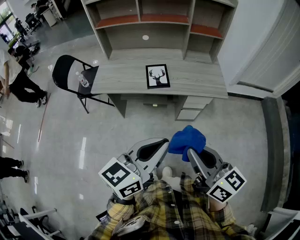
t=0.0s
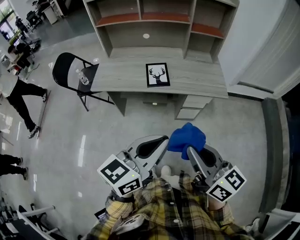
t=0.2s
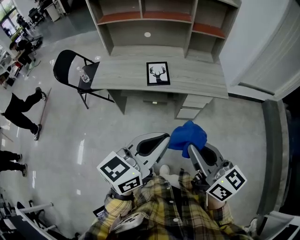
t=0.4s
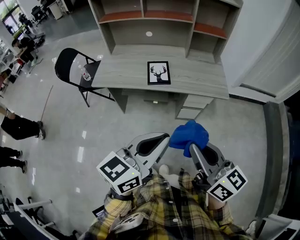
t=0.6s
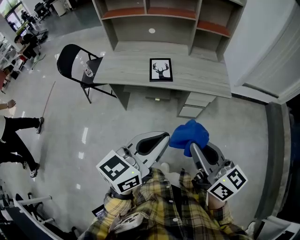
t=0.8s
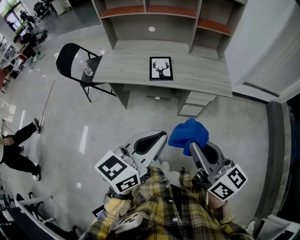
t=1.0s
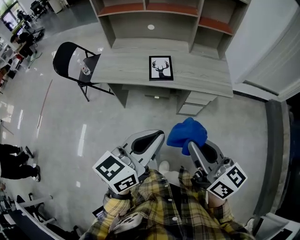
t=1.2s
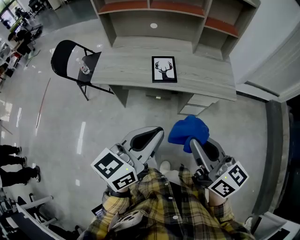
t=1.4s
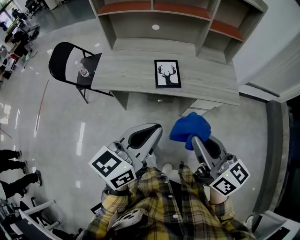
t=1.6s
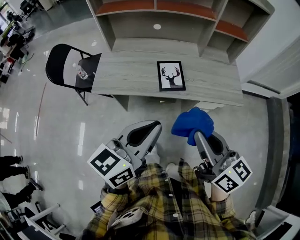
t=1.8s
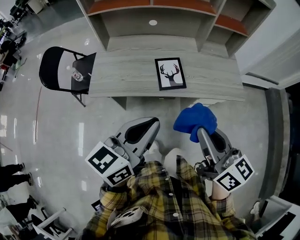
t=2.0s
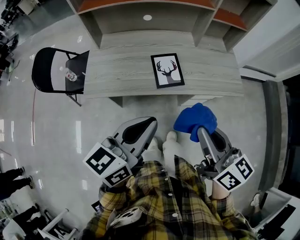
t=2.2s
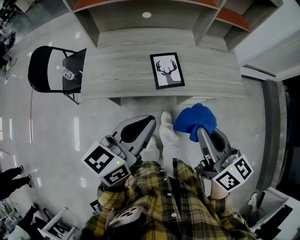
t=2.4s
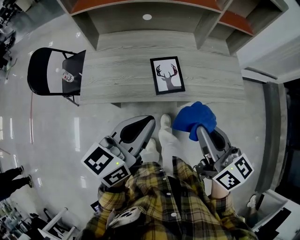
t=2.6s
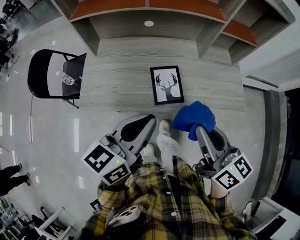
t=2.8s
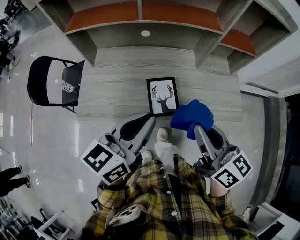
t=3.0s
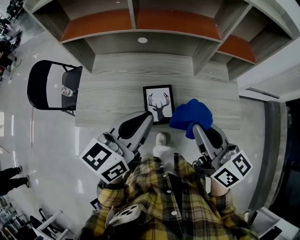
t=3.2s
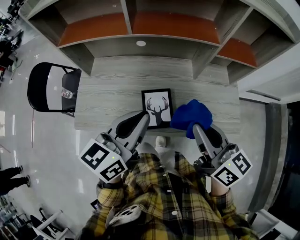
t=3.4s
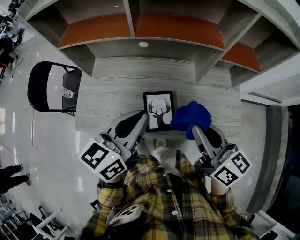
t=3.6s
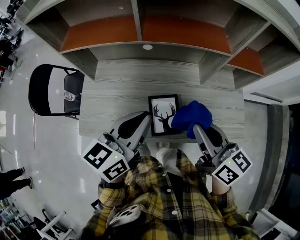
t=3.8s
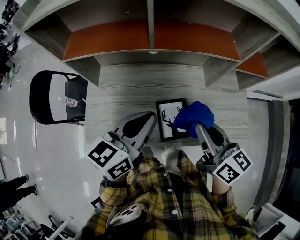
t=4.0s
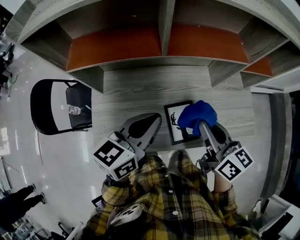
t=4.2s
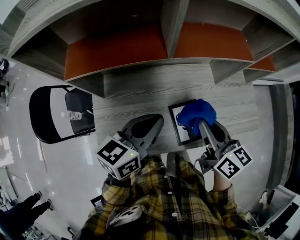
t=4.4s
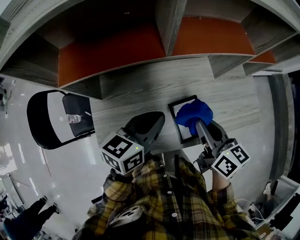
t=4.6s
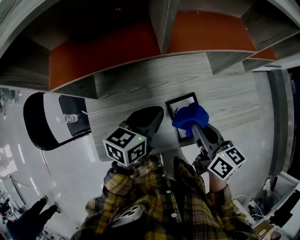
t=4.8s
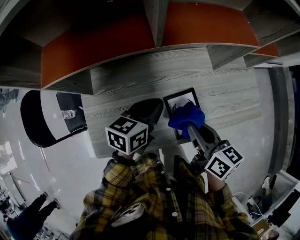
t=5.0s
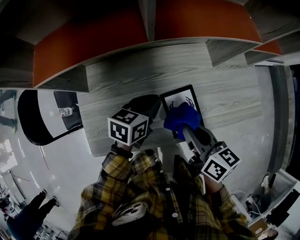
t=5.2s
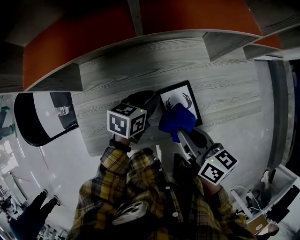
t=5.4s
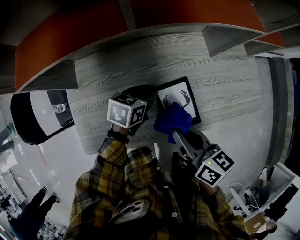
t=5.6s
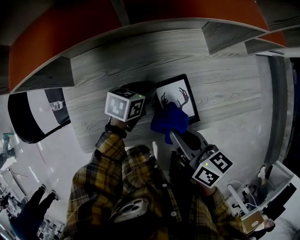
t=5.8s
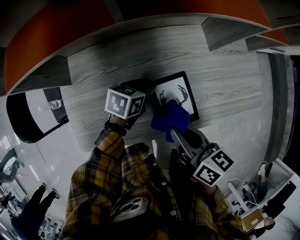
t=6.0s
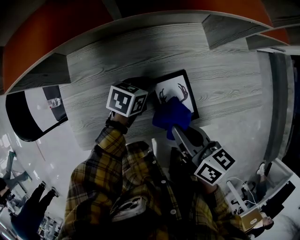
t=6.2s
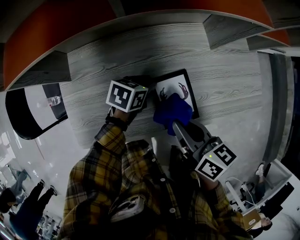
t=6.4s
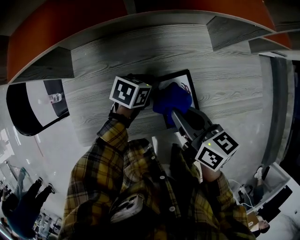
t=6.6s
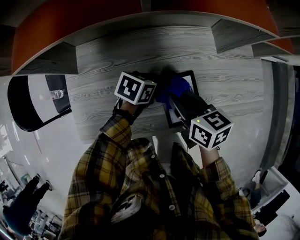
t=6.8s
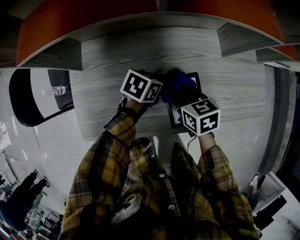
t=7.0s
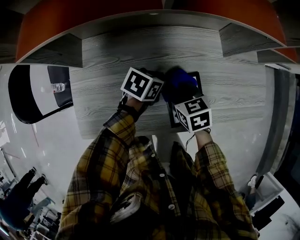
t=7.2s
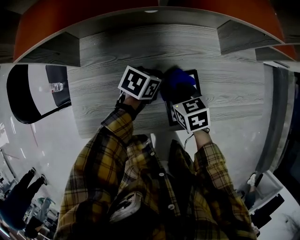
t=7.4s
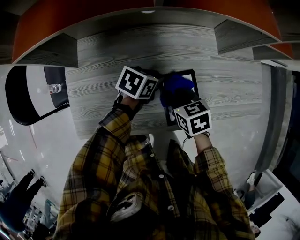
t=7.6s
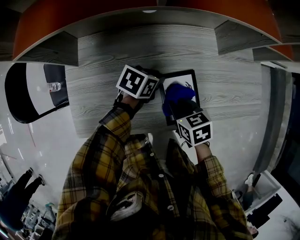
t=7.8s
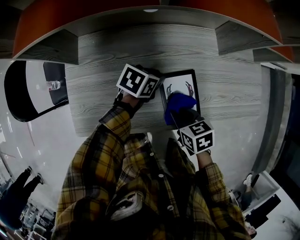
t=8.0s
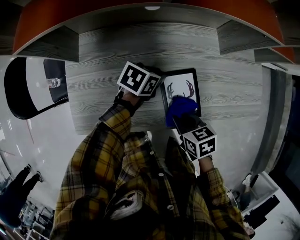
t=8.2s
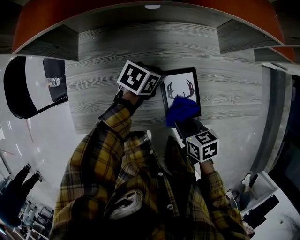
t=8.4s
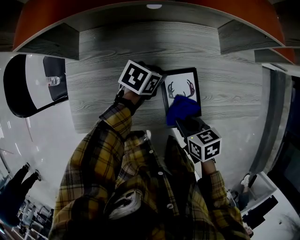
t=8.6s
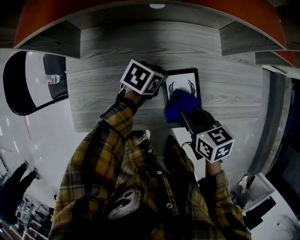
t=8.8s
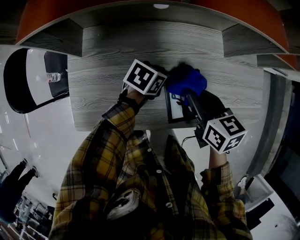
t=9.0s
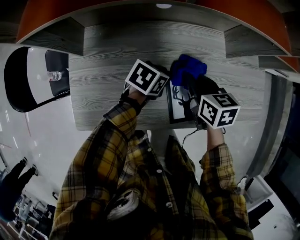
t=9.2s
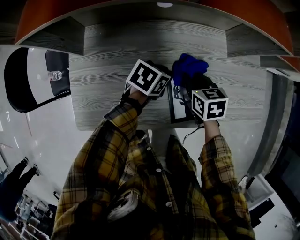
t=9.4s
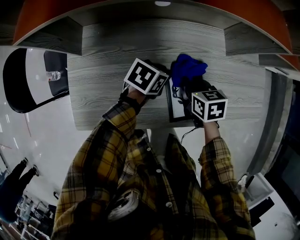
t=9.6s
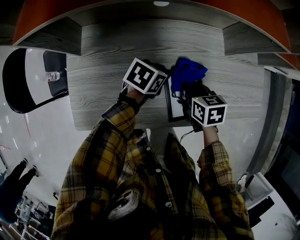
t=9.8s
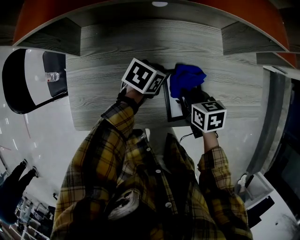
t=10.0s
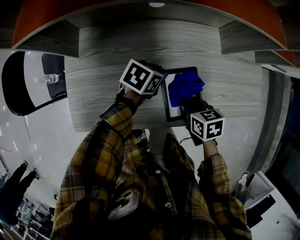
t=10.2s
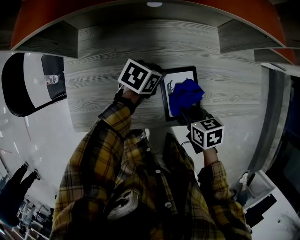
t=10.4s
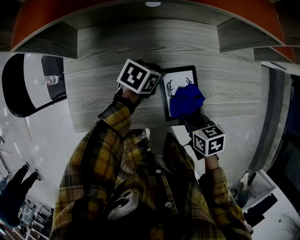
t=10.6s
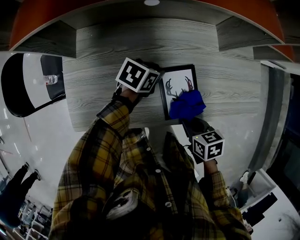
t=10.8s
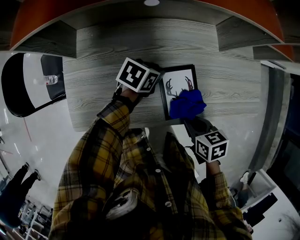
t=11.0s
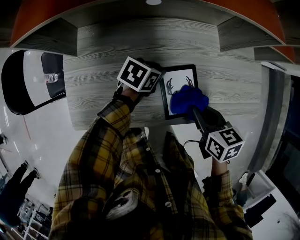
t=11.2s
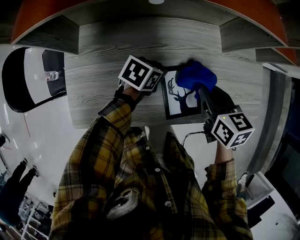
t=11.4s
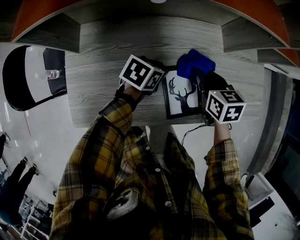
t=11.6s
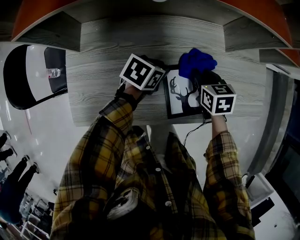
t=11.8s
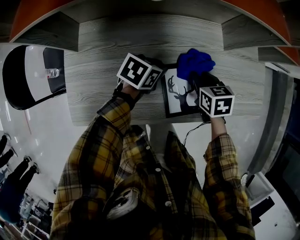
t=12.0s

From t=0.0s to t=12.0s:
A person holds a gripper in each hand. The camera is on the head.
From t=0.0s to t=1.6s: The right gripper travels forward by roughly 15 cm, while the left gripper shifts roughly 15 cm forward and to the left.
From t=1.6s to t=3.0s: Both grippers travel together forward, roughly 25 cm.
From t=3.0s to t=4.4s: The two grippers go roughly 20 cm forward and to the left.
From t=4.4s to t=6.0s: The left gripper travels downward by some 25 cm, changes its angle by roughly 30 degrees, and opens its fingers; the right gripper goes about 10 cm downward and backward.
From t=6.0s to t=7.6s: The right gripper goes some 15 cm downward and forward, and turns by about 40 degrees.
From t=7.6s to t=9.0s: The right gripper is displaced upward by roughly 10 cm.
From t=9.0s to t=10.4s: The right gripper travels downward, backward and to the right by some 15 cm, and swivels approximately 20 degrees.
From t=10.4s to t=12.0s: The right gripper heads forward, covering roughly 15 cm.

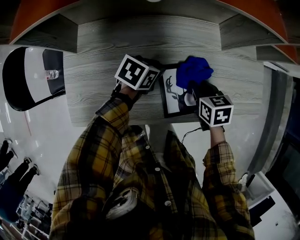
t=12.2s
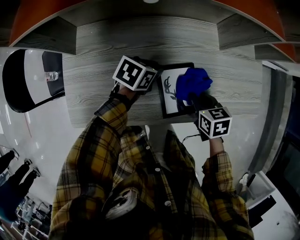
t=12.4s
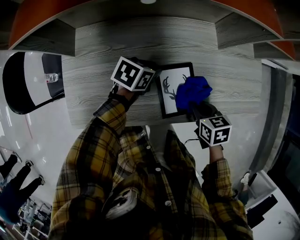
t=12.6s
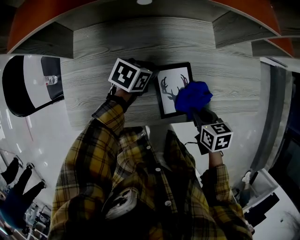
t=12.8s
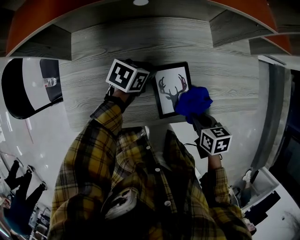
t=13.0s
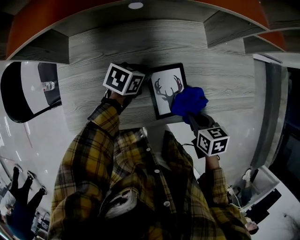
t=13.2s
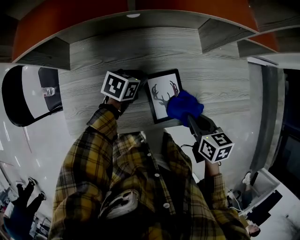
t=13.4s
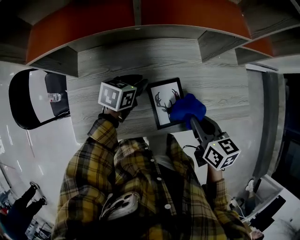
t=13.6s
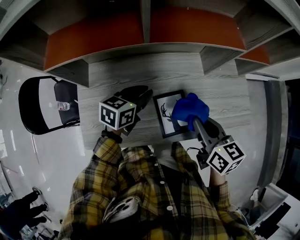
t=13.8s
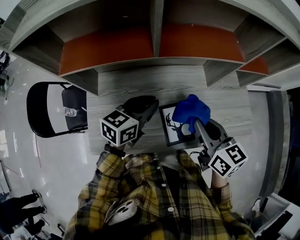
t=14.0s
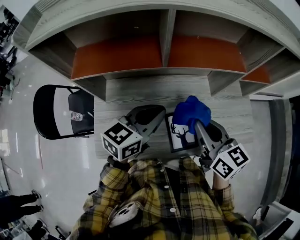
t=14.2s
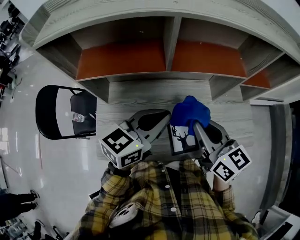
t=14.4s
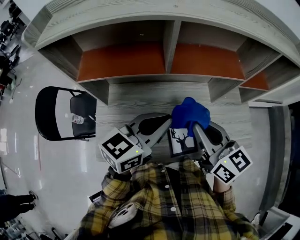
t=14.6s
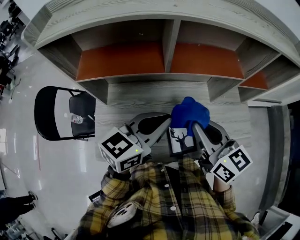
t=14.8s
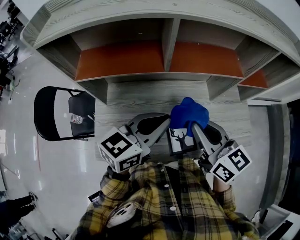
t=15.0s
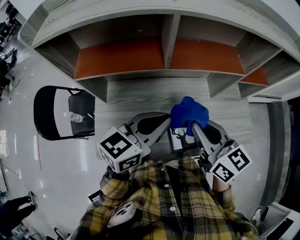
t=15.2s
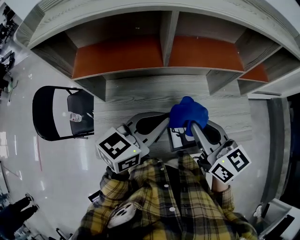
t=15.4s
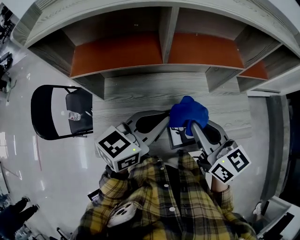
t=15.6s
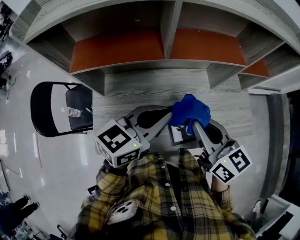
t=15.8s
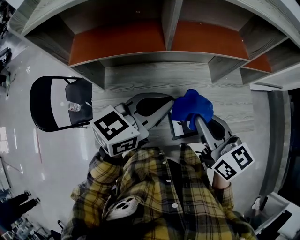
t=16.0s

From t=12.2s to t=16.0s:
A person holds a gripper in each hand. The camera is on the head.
From t=12.2s to t=13.4s: The right gripper is displaced backward, upward and to the right by roughly 15 cm.
From t=13.4s to t=14.8s: The right gripper shifts some 25 cm upward and to the left, and tilts its fingers roughly 30 degrees upward, while the left gripper goes approximately 30 cm upward, tilts its fingers approximately 40 degrees upward, and closes.
From t=14.8s to t=16.0s: The grippers move only a little.

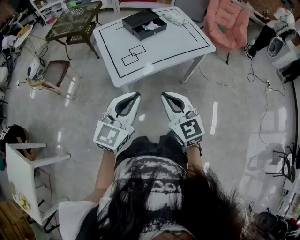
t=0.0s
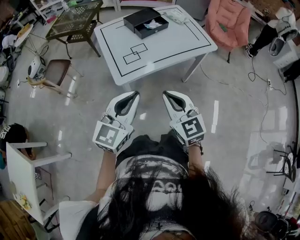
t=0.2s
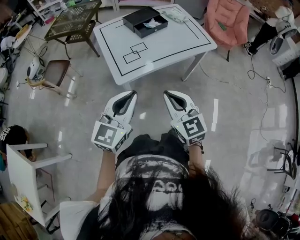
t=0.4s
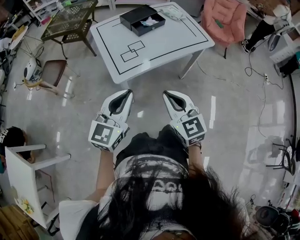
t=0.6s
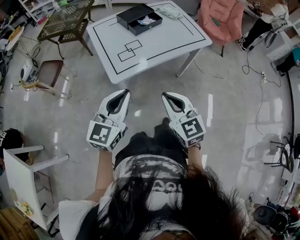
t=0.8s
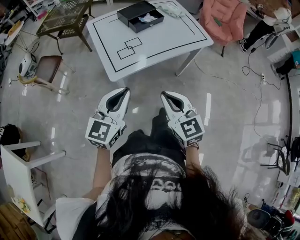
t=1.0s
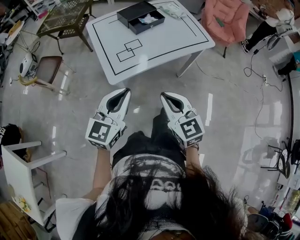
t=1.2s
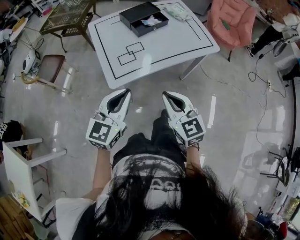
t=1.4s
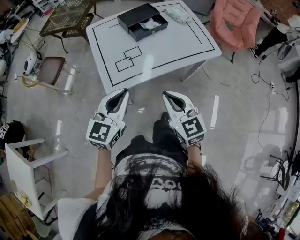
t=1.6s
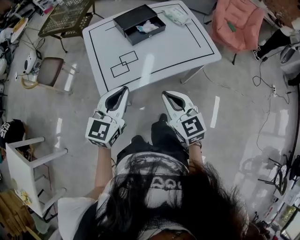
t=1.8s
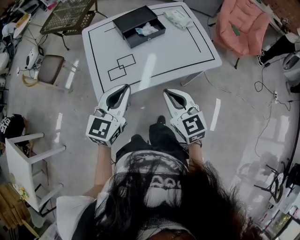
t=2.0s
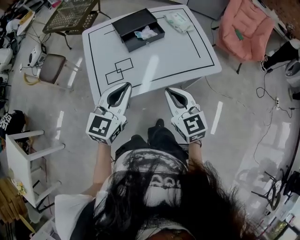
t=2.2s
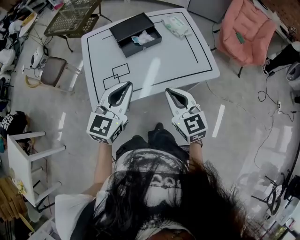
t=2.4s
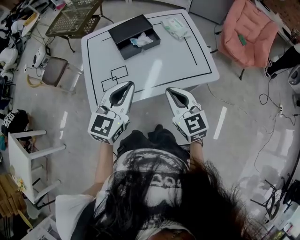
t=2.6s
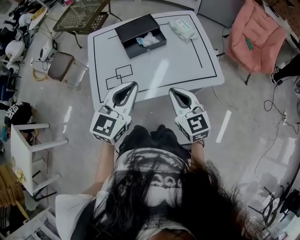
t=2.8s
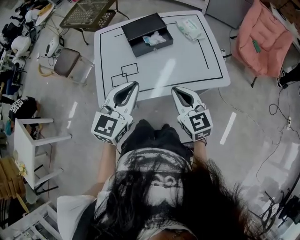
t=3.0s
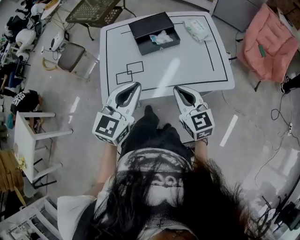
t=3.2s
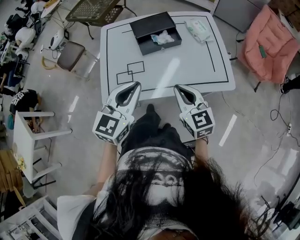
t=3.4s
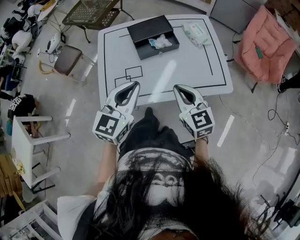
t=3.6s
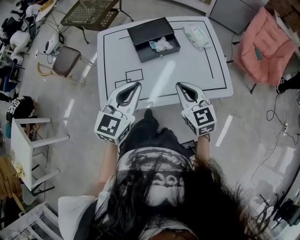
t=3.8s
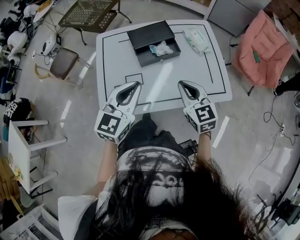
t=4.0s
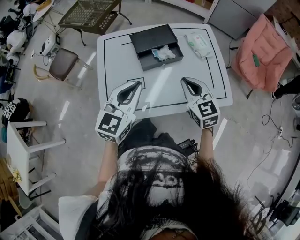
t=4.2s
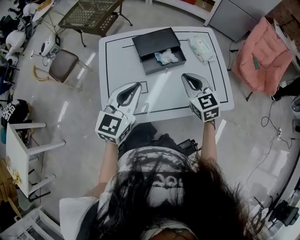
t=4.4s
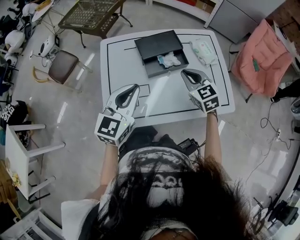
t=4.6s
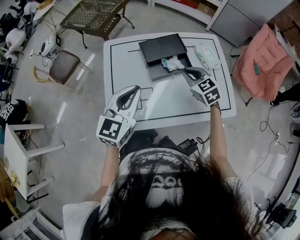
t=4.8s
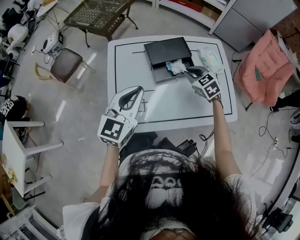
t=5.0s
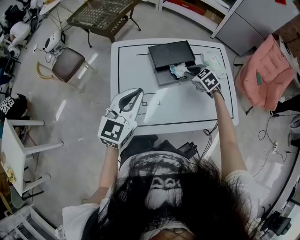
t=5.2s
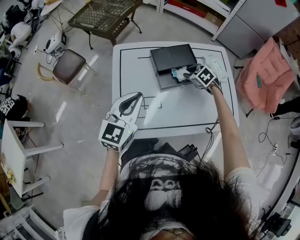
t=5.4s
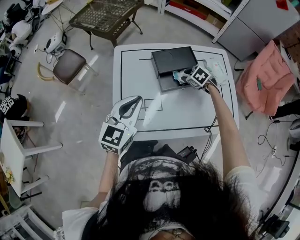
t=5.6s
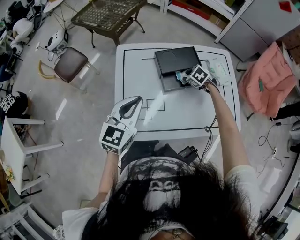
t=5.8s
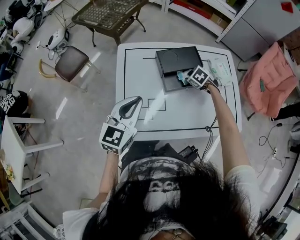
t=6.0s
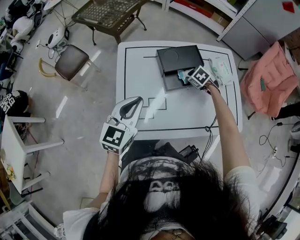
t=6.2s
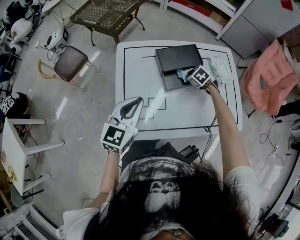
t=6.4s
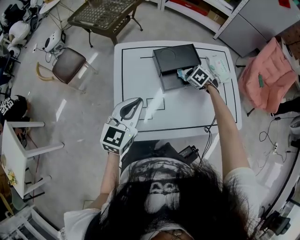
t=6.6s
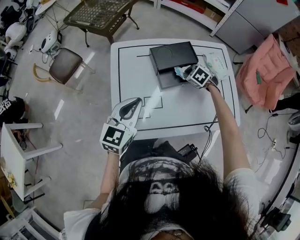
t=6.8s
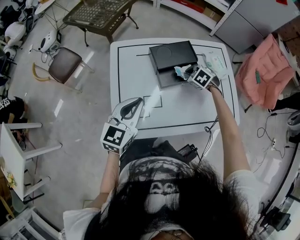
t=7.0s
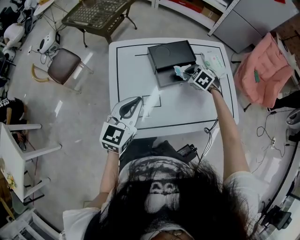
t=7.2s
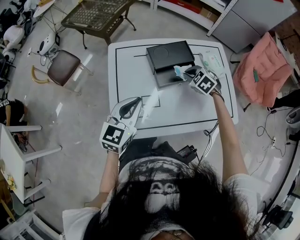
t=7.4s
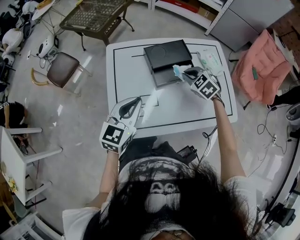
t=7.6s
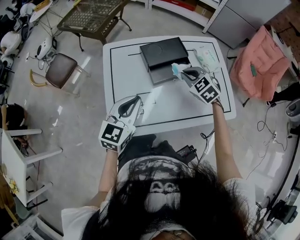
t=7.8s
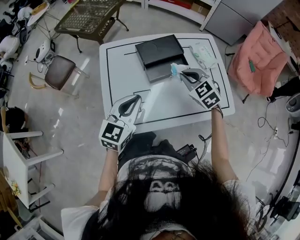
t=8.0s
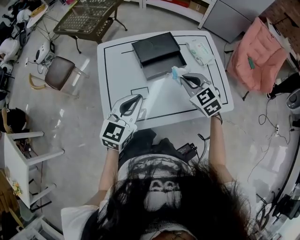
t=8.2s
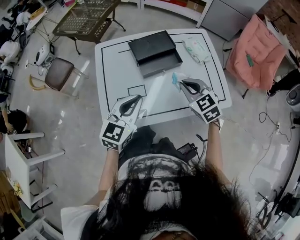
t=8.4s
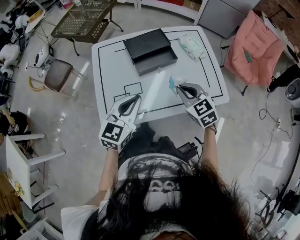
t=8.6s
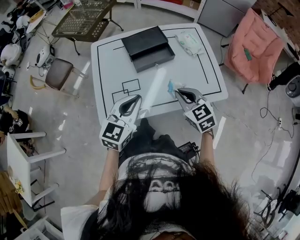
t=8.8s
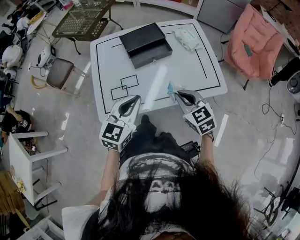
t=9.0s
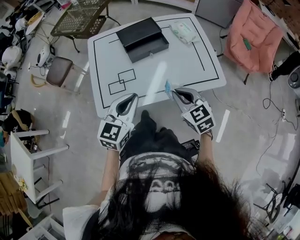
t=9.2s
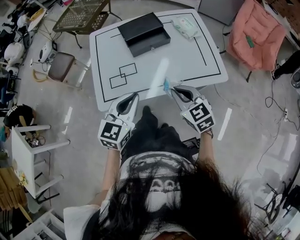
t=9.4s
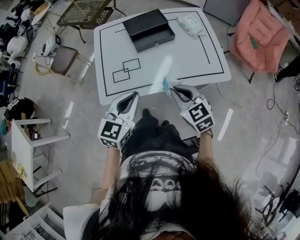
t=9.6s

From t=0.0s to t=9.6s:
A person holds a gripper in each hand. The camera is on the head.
From t=0.0s to t=1.6s: Both grippers travel together forward, some 15 cm.
From t=1.6s to t=3.2s: The left gripper is displaced to the right and forward by roughly 20 cm, while the right gripper shifts approximately 25 cm forward and to the right.
From t=3.2s to t=4.8s: The left gripper moves forward and to the left, approximately 20 cm, while the right gripper is displaced forward by roughly 25 cm, and turns by about 30 degrees.
From t=4.8s to t=6.4s: The left gripper travels to the left by roughly 5 cm. Meanwhile the right gripper travels downward and forward by approximately 20 cm, angles its fingers downward, by approximately 30 degrees, and opens and closes again.
From t=6.4s to t=8.0s: The left gripper goes about 5 cm to the right, while the right gripper heads upward and backward, covering some 20 cm, and swivels approximately 30 degrees.
From t=8.0s to t=9.6s: The right gripper goes approximately 25 cm backward, and rotates about 20 degrees; the left gripper goes approximately 20 cm backward and to the right.
